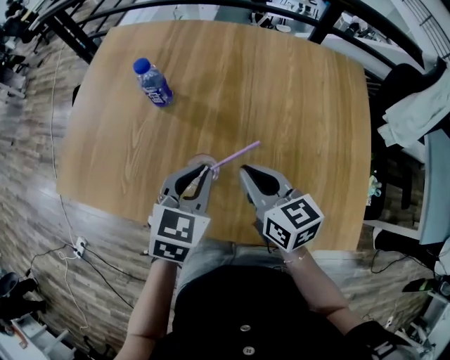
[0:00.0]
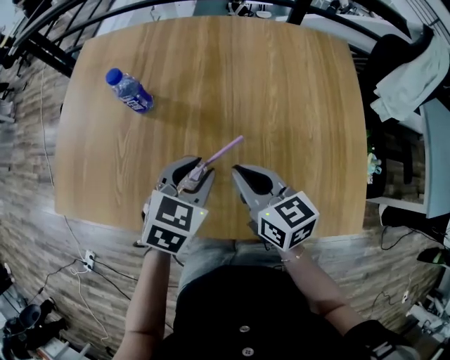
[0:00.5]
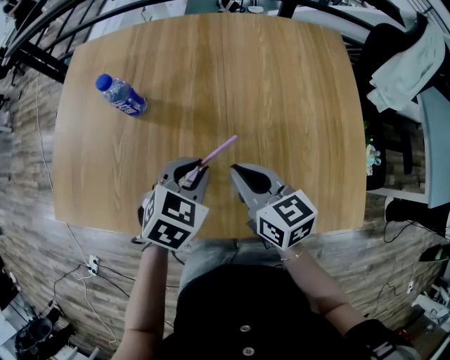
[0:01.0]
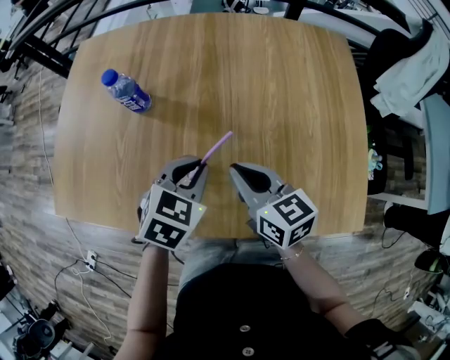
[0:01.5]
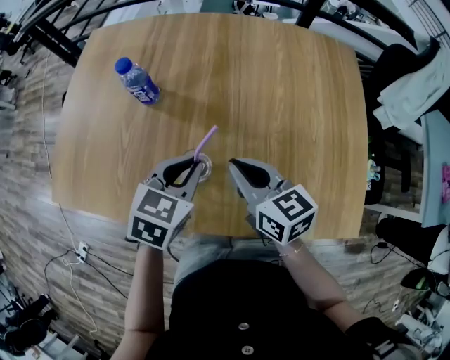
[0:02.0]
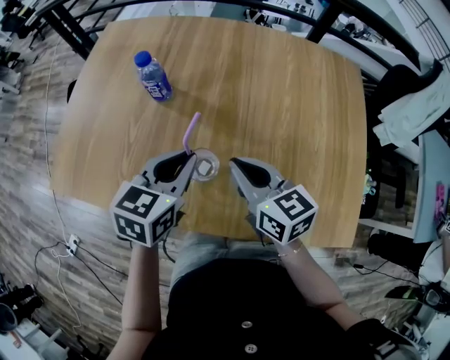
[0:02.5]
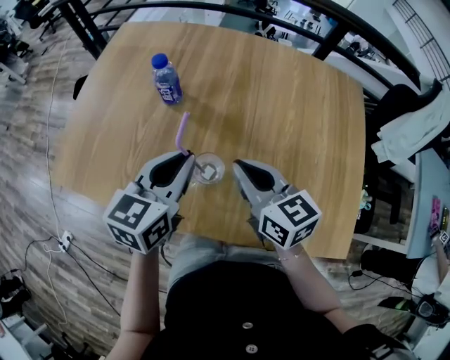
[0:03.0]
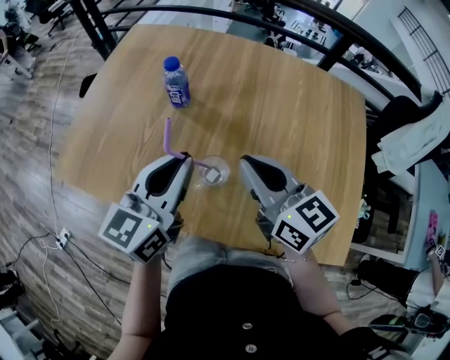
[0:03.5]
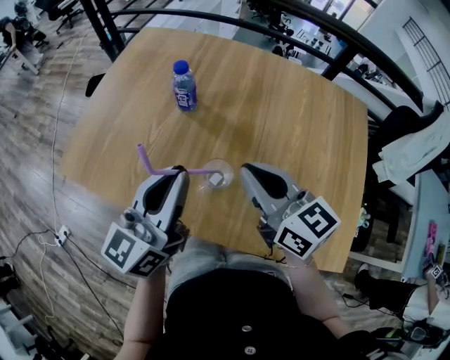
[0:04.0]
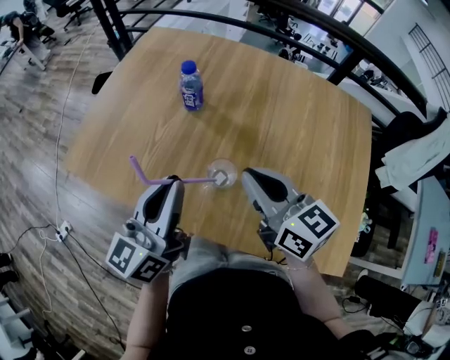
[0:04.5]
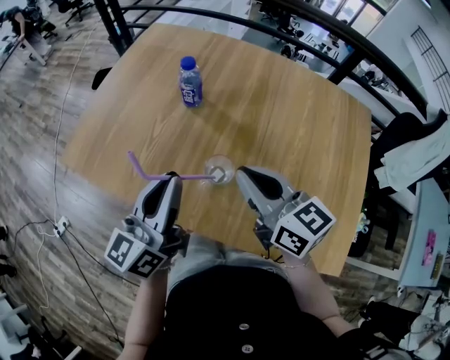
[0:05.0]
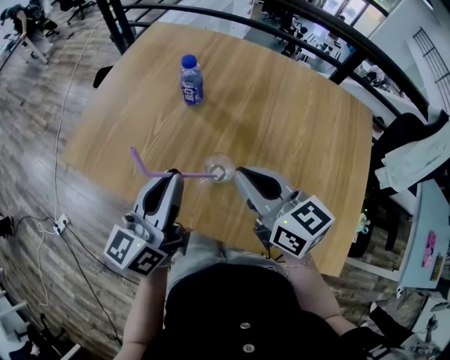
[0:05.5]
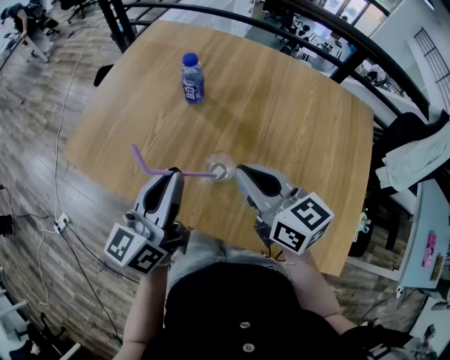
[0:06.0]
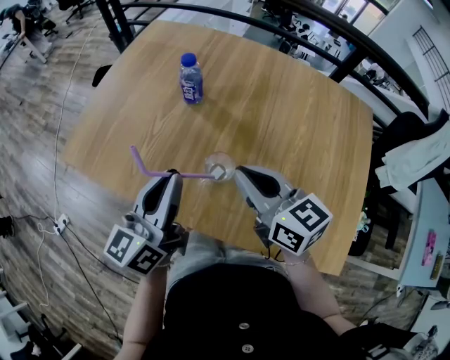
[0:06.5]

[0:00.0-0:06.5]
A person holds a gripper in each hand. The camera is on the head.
0:00.0 to 0:02.0: The left gripper opens, then closes again.
0:02.0 to 0:04.5: The left gripper heads upward and to the left, covering about 20 cm, and tilts its fingers approximately 50 degrees upward; the right gripper goes about 10 cm upward.
0:04.5 to 0:06.5: There are only small adjustments of the grippers.

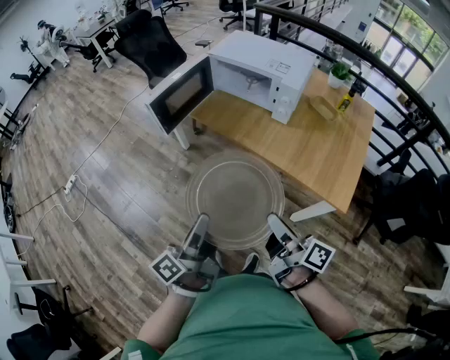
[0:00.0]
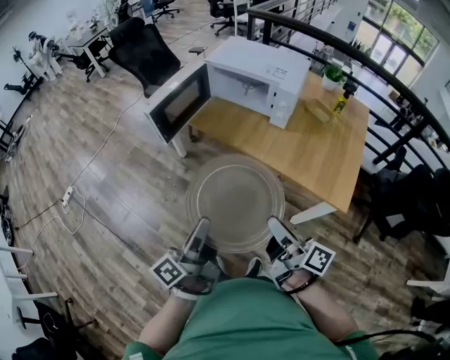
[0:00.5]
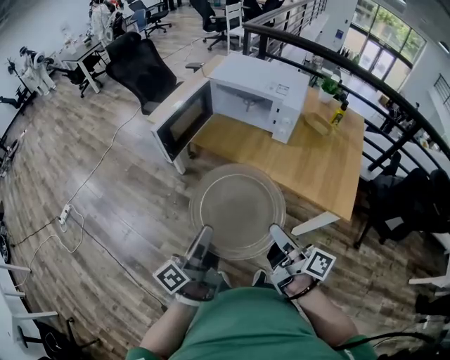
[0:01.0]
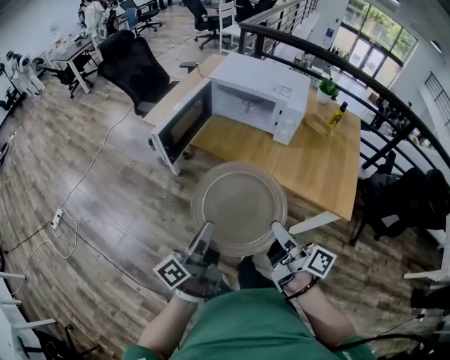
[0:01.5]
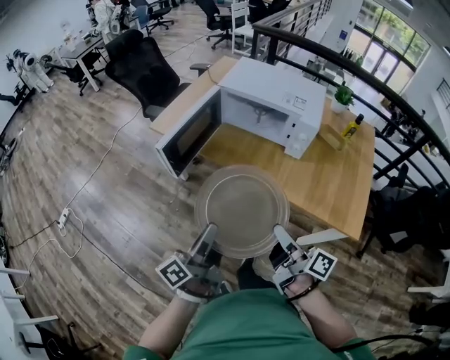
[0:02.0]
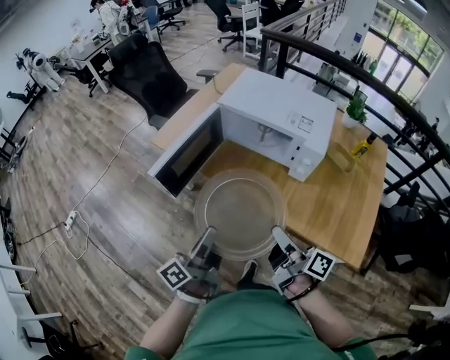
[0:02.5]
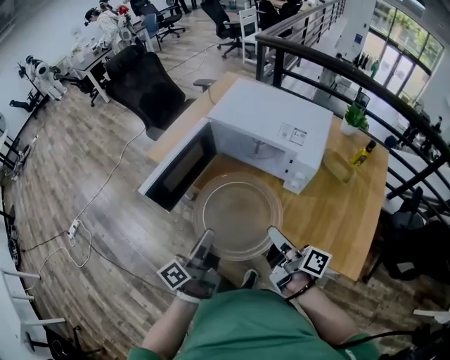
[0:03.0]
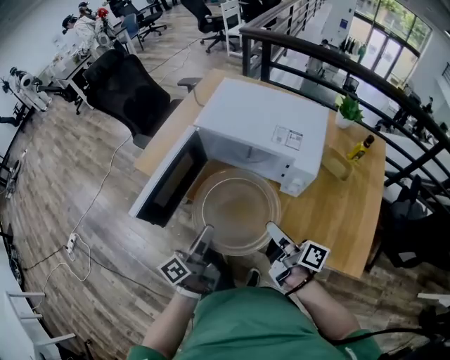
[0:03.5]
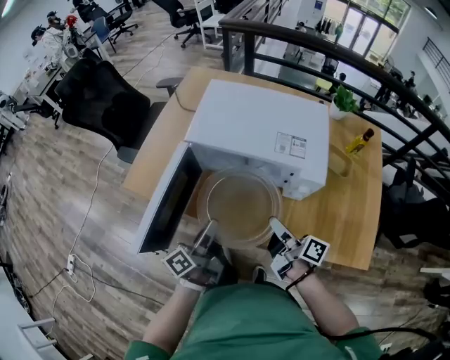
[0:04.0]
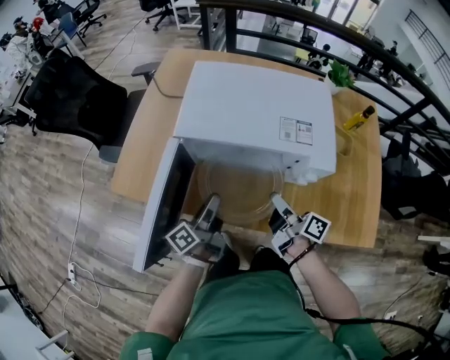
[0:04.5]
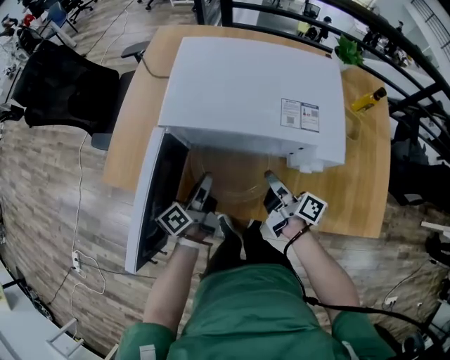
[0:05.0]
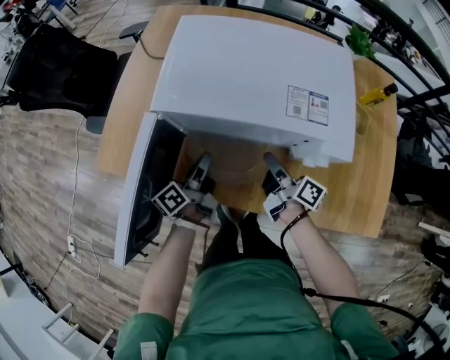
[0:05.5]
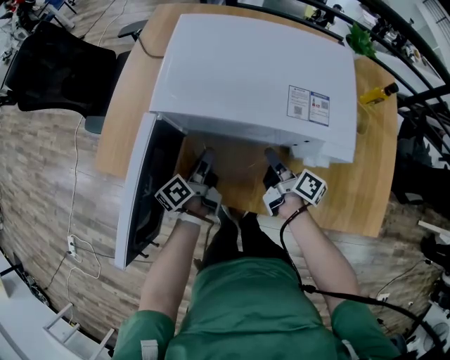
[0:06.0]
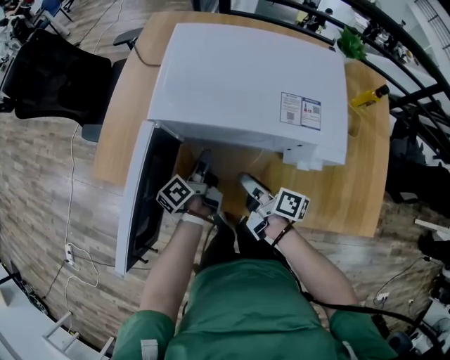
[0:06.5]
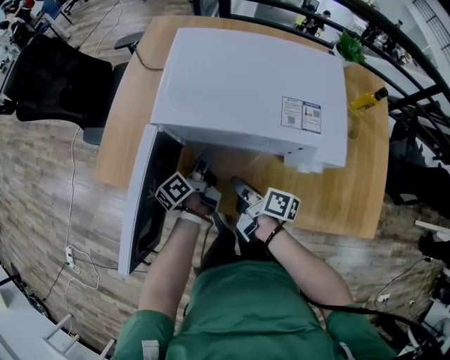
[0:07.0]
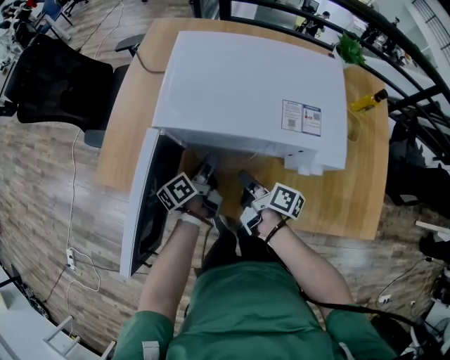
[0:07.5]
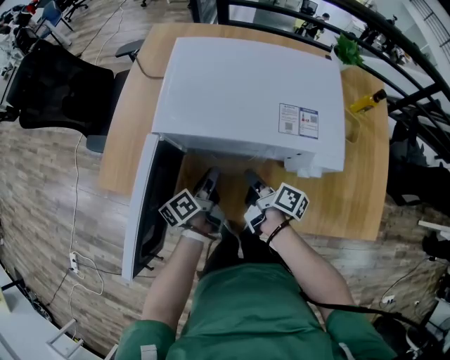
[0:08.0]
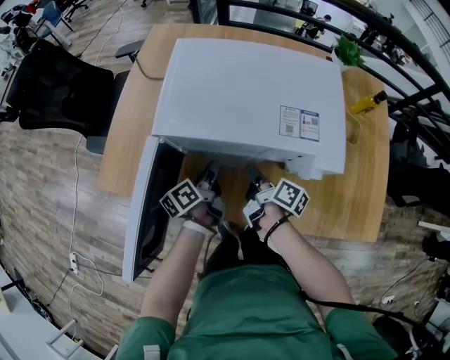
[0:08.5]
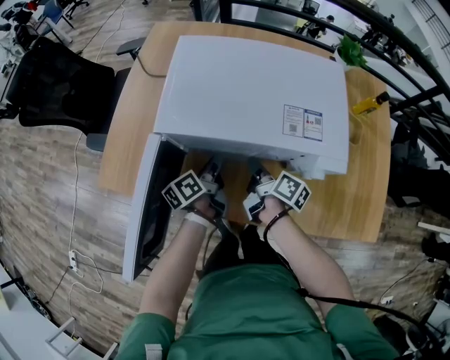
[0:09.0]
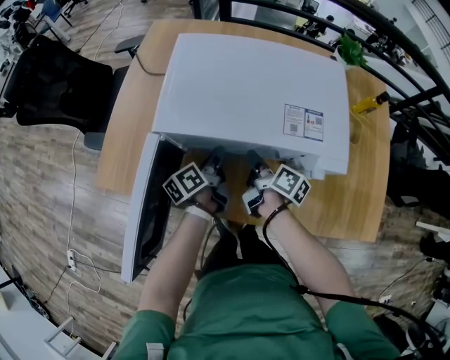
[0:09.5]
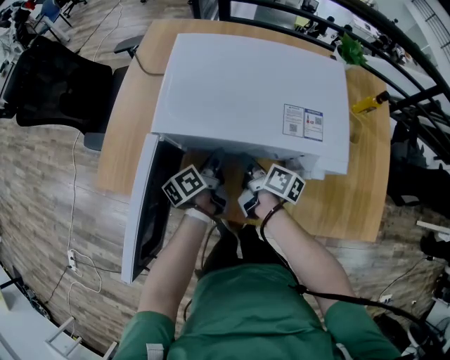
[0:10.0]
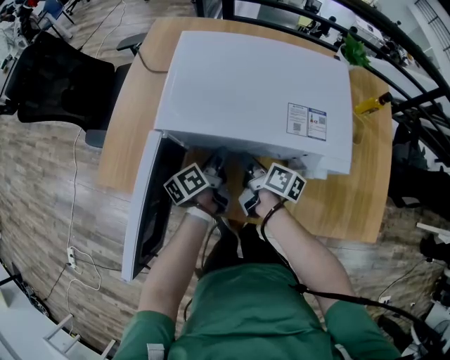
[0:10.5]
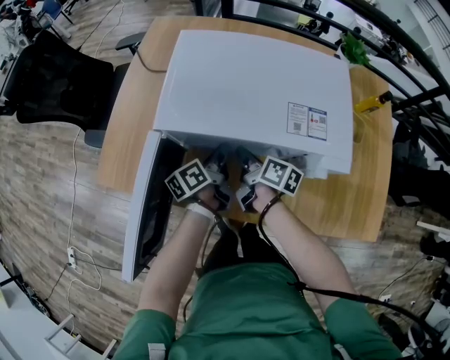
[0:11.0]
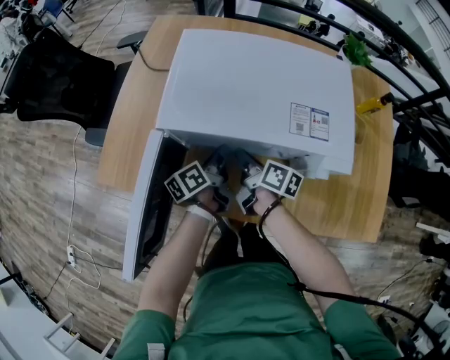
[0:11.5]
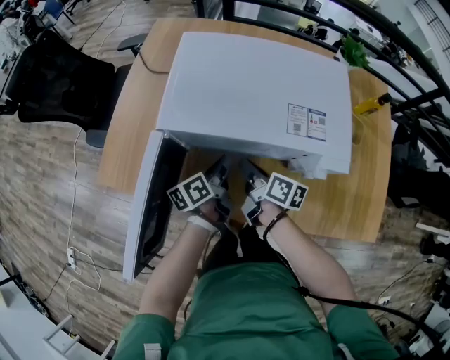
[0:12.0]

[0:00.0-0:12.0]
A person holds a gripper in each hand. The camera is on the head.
0:00.0 to 0:02.0: The grippers both shift forward and to the left by approximately 15 cm.
0:02.0 to 0:04.0: Both grippers travel together forward, roughly 30 cm.
0:04.0 to 0:06.0: The right gripper travels downward and forward by some 20 cm; the left gripper moves forward and downward, roughly 20 cm.
0:06.0 to 0:08.0: The left gripper opens and closes again. The right gripper heads to the left, covering roughly 5 cm, and opens, then closes once more.
0:08.0 to 0:10.0: Both grippers travel together forward, roughly 5 cm.
0:10.0 to 0:12.0: The grippers move only a little.

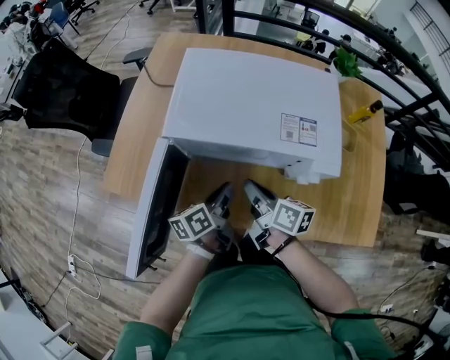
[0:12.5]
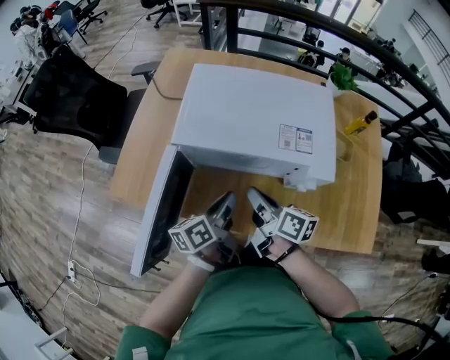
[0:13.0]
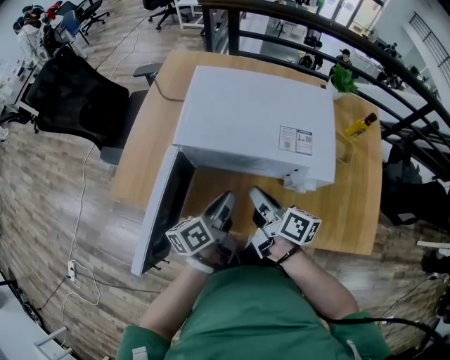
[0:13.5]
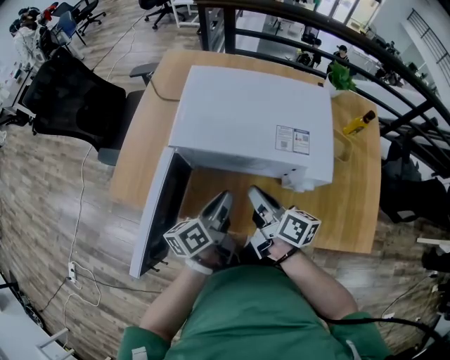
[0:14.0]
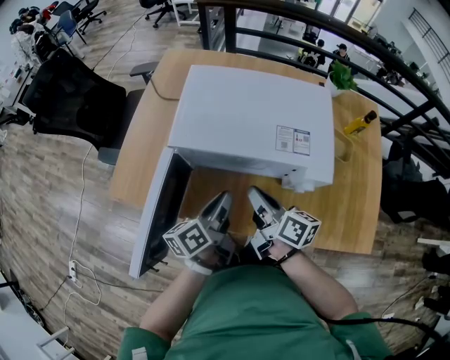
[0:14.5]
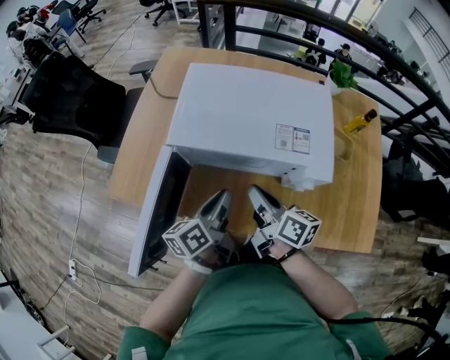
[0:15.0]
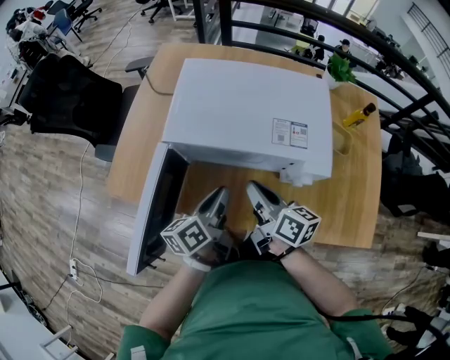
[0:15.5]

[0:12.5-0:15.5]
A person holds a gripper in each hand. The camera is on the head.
0:12.5 to 0:14.0: Both grippers move upward, approximately 5 cm.
0:14.0 to 0:15.5: The grippers move only a little.

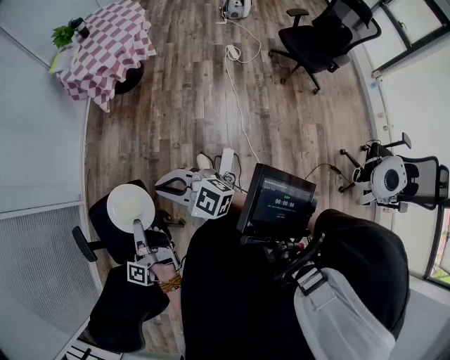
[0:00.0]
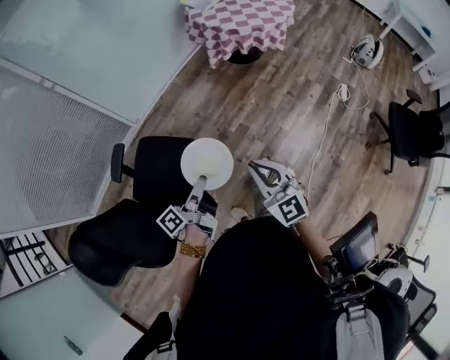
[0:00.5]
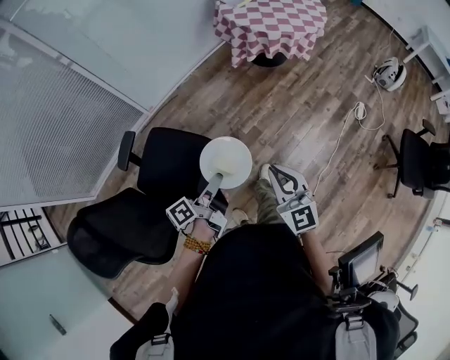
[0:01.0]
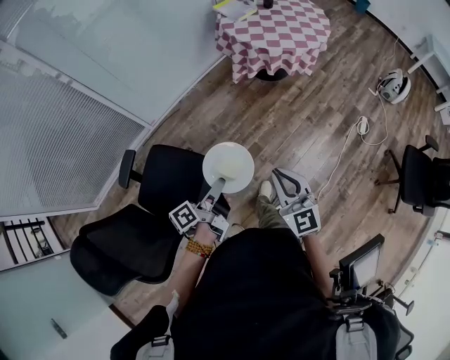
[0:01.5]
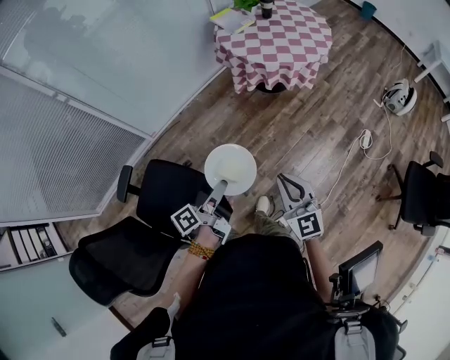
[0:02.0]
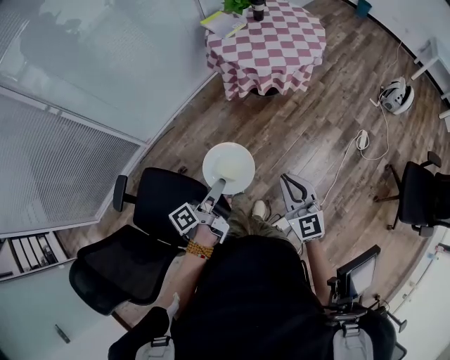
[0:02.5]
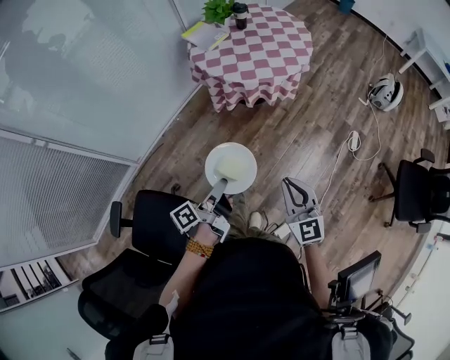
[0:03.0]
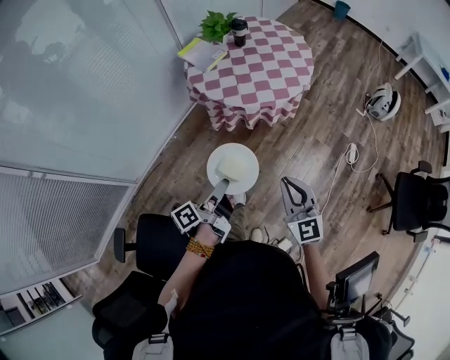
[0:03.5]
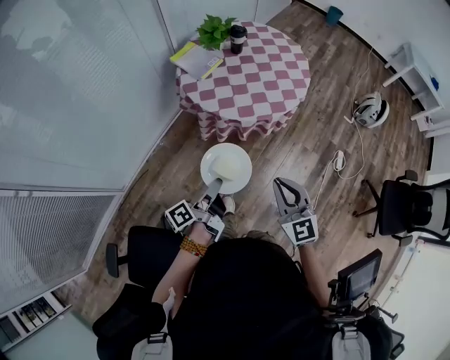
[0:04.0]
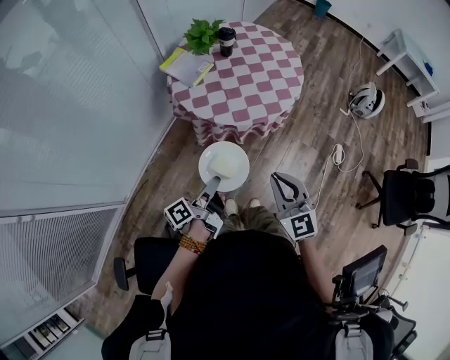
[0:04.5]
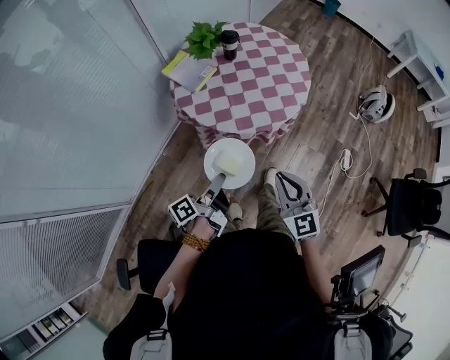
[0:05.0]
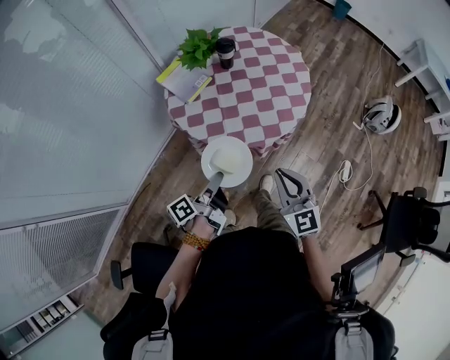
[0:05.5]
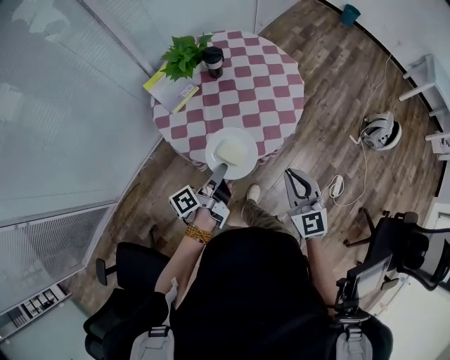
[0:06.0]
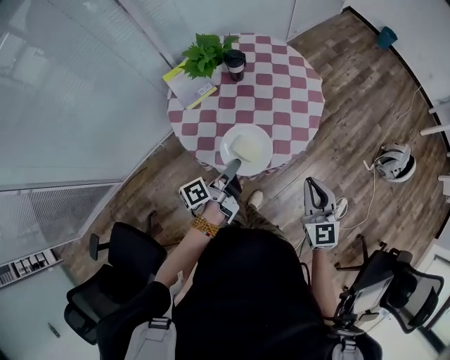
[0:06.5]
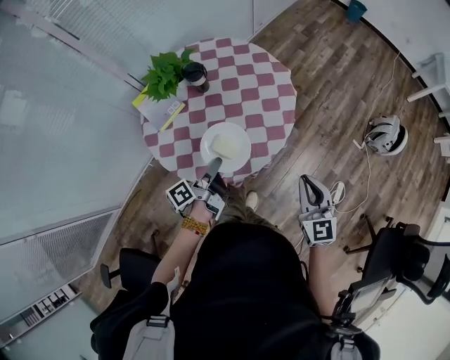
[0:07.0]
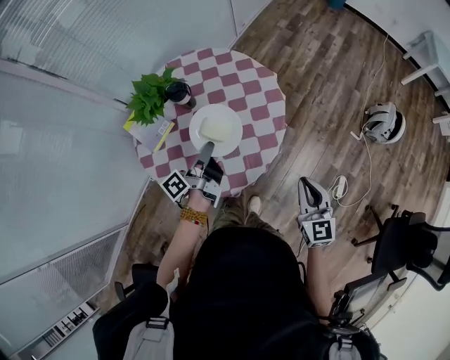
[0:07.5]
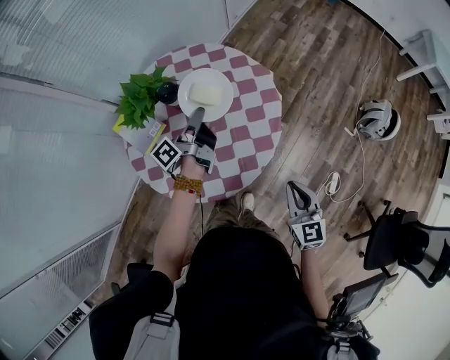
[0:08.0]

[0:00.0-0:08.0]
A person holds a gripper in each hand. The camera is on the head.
0:00.0 to 0:02.0: The right gripper changes place by some 30 cm.
0:02.0 to 0:04.0: The right gripper shifts by roughly 35 cm.
0:04.0 to 0:06.0: The right gripper shifts by about 35 cm.
0:06.0 to 0:08.0: The right gripper changes place by about 20 cm, and changes its angle by about 20 degrees.
